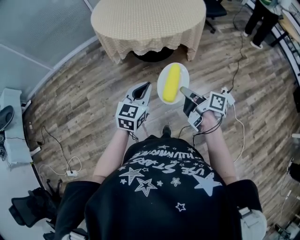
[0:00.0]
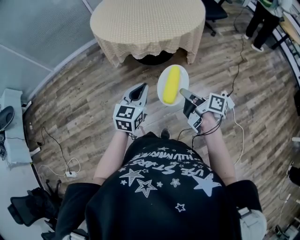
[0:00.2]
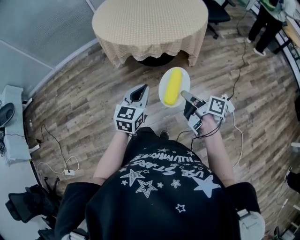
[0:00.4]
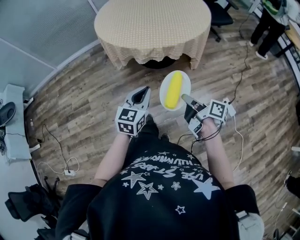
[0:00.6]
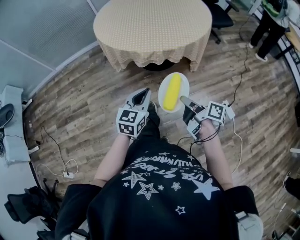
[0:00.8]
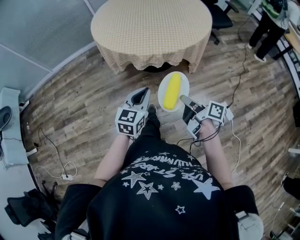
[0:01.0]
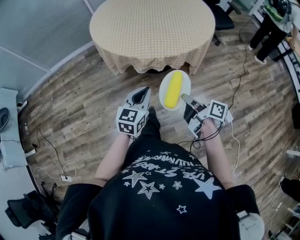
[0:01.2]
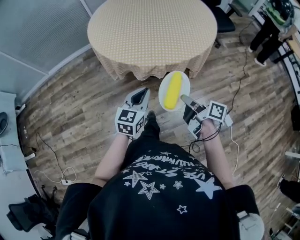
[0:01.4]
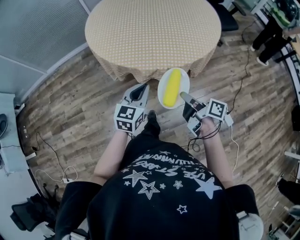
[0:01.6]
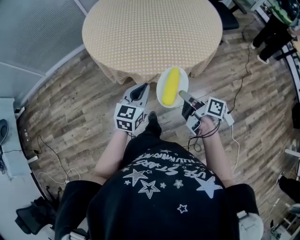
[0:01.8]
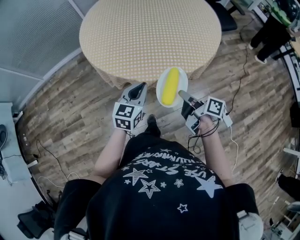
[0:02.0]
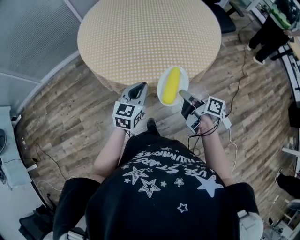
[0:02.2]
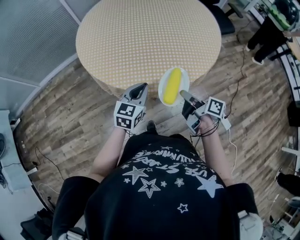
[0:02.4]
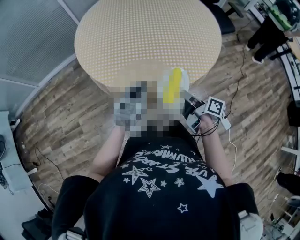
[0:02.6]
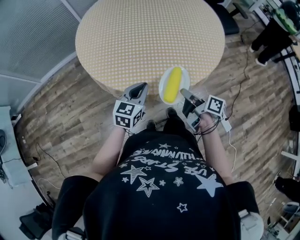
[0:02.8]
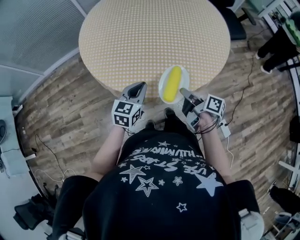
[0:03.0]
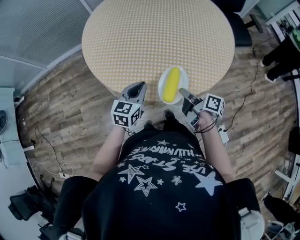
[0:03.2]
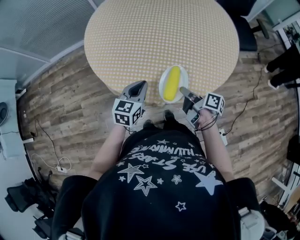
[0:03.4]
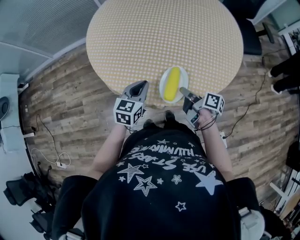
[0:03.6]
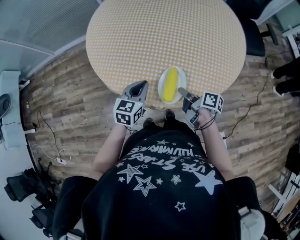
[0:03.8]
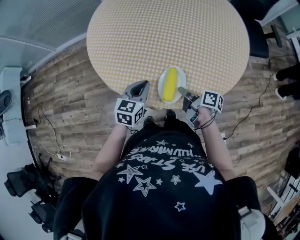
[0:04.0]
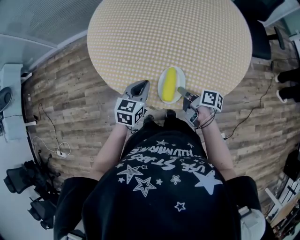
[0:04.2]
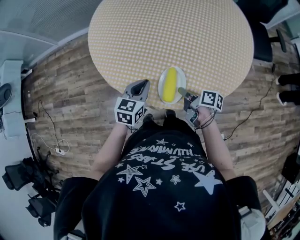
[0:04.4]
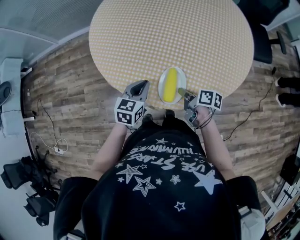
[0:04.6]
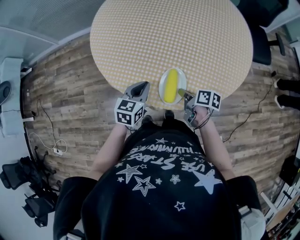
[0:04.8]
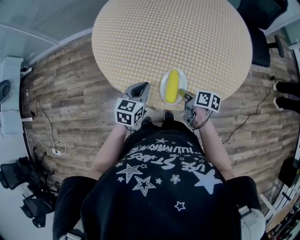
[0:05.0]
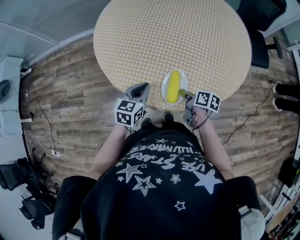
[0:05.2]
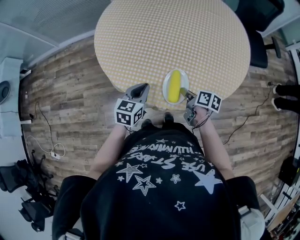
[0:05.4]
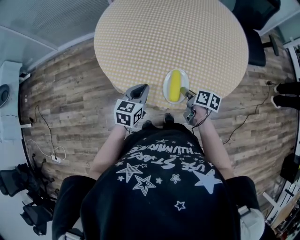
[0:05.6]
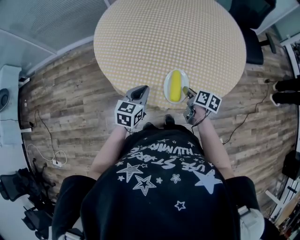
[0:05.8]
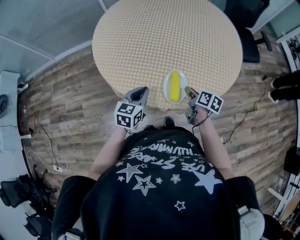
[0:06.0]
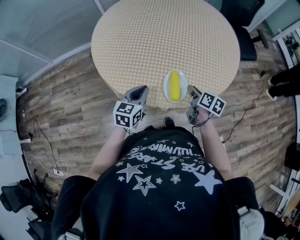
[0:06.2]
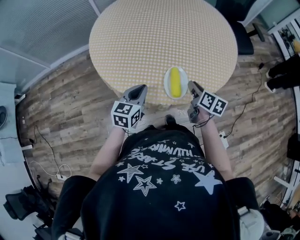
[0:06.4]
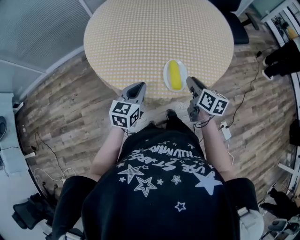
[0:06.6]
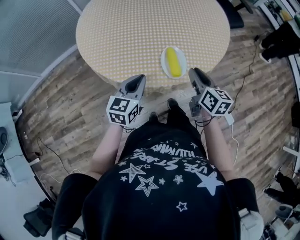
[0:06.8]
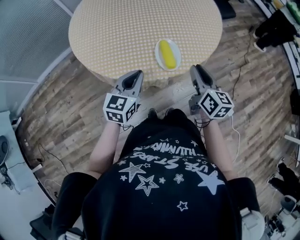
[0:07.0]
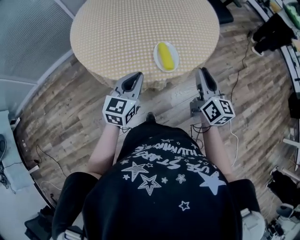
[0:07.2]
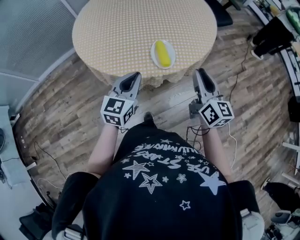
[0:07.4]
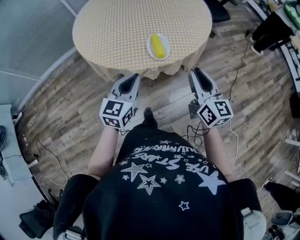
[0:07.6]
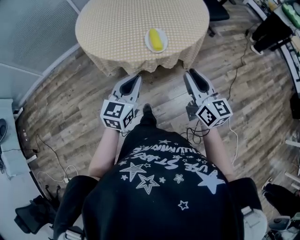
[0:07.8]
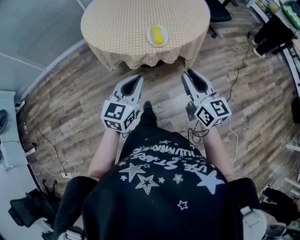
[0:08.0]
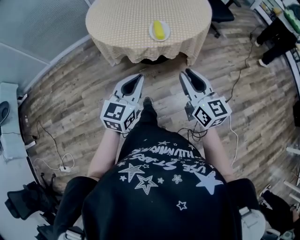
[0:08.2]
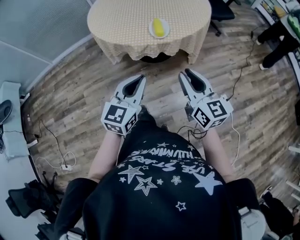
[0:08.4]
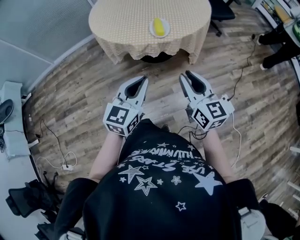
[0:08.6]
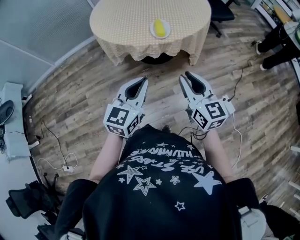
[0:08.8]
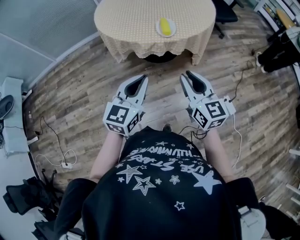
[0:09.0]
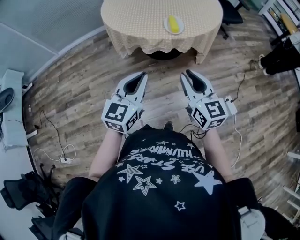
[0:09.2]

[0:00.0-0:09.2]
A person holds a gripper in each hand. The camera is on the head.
0:00.0 to 0:01.6: The grippers both shift forward by approximately 25 cm.
0:01.6 to 0:03.0: The two grippers go approximately 15 cm forward.
0:03.0 to 0:04.6: The right gripper moves forward and downward, some 10 cm, and swivels about 30 degrees. The left gripper shifts by some 5 cm.
0:04.6 to 0:06.2: The right gripper ends up roughly 5 cm from where it was, and swivels roughly 30 degrees.
0:06.2 to 0:07.6: The left gripper heads backward and upward, covering about 20 cm; the right gripper heads backward and upward, covering approximately 30 cm, and tips its fingers upward by approximately 30 degrees.
0:07.6 to 0:09.2: Both grippers move backward, roughly 20 cm.

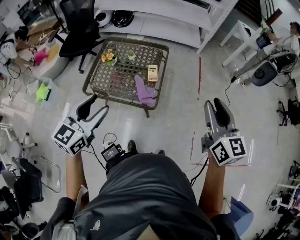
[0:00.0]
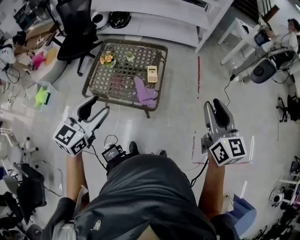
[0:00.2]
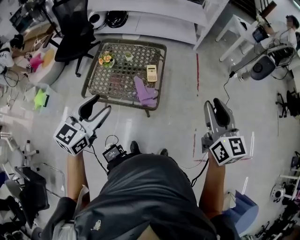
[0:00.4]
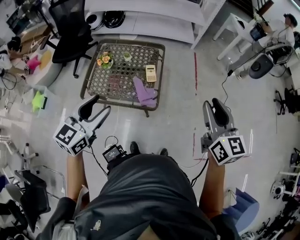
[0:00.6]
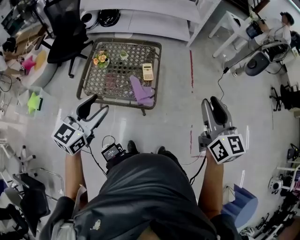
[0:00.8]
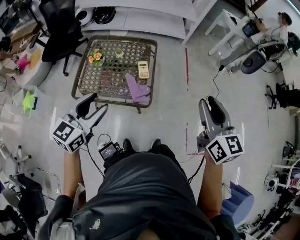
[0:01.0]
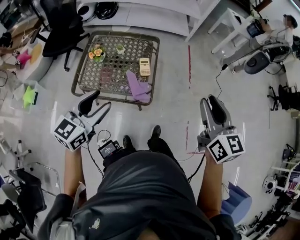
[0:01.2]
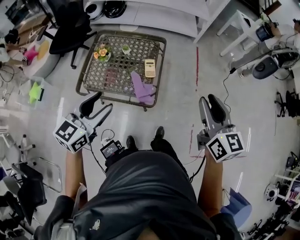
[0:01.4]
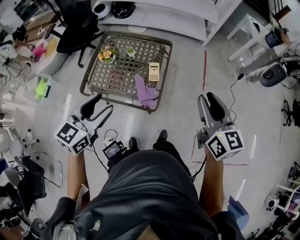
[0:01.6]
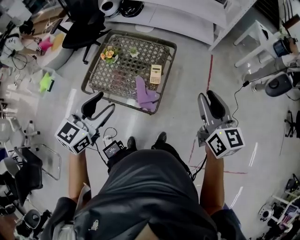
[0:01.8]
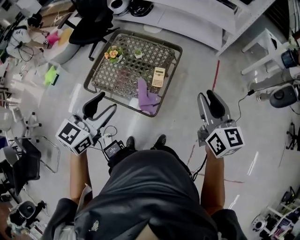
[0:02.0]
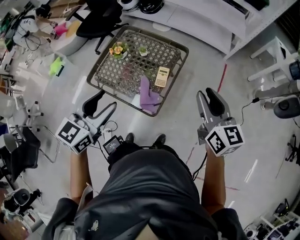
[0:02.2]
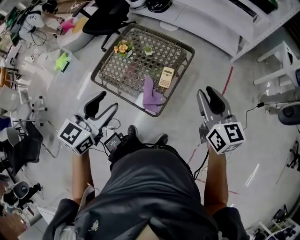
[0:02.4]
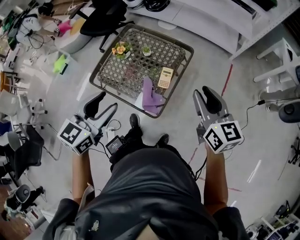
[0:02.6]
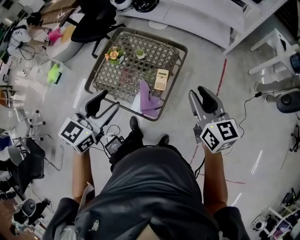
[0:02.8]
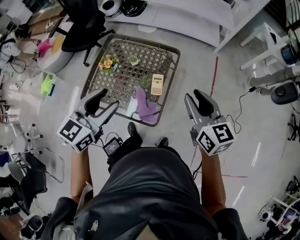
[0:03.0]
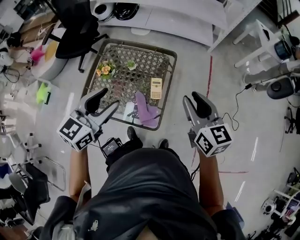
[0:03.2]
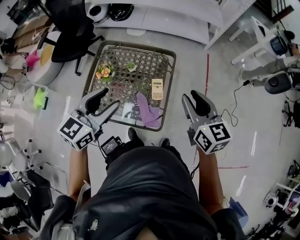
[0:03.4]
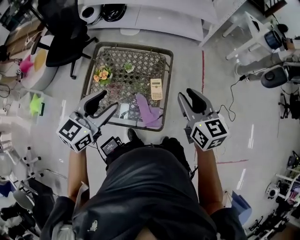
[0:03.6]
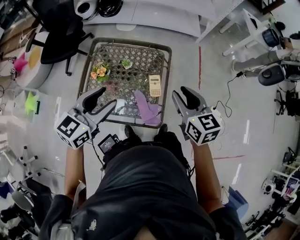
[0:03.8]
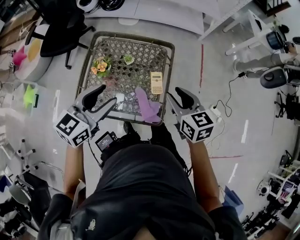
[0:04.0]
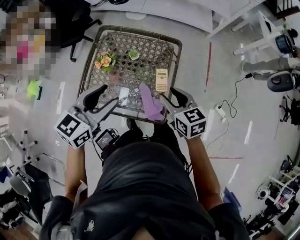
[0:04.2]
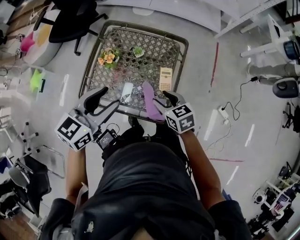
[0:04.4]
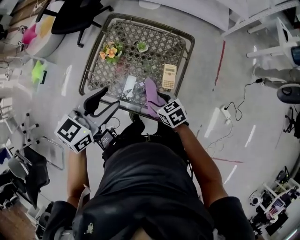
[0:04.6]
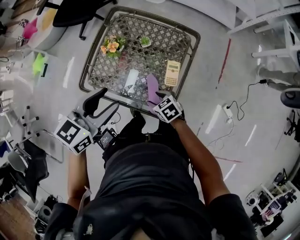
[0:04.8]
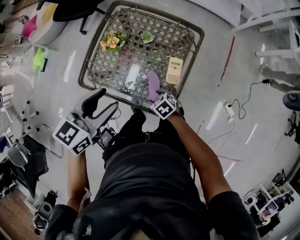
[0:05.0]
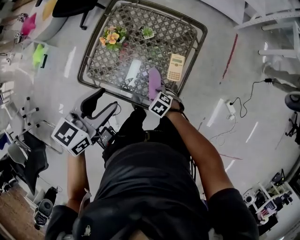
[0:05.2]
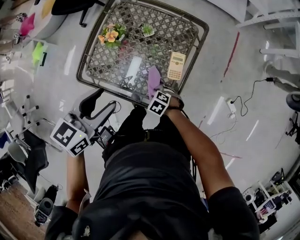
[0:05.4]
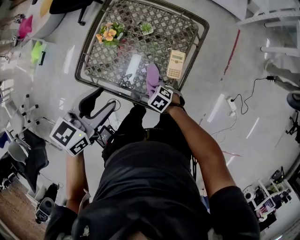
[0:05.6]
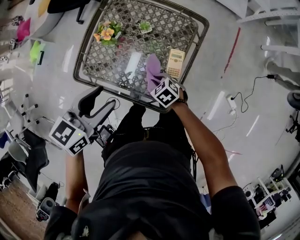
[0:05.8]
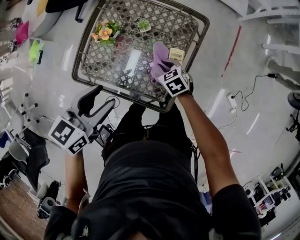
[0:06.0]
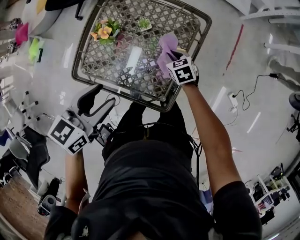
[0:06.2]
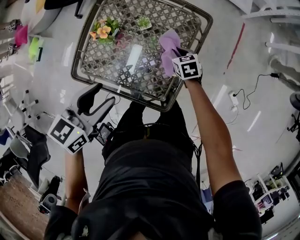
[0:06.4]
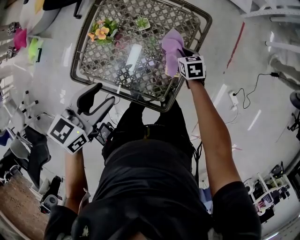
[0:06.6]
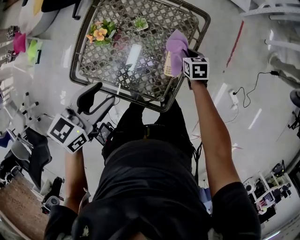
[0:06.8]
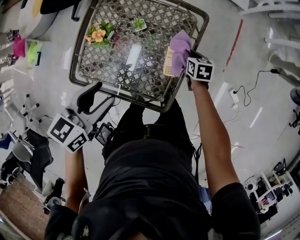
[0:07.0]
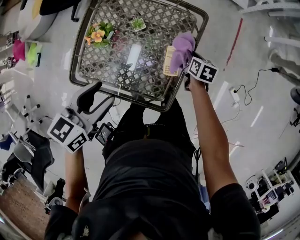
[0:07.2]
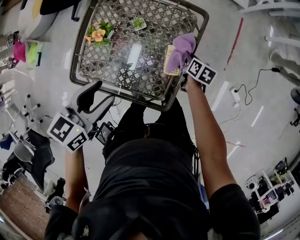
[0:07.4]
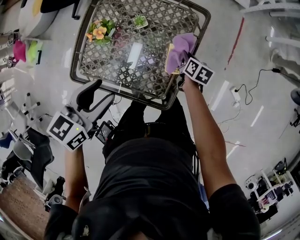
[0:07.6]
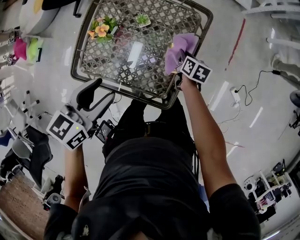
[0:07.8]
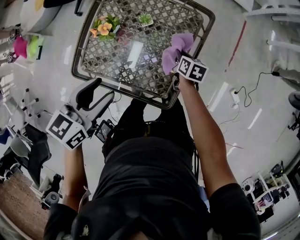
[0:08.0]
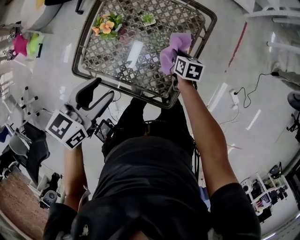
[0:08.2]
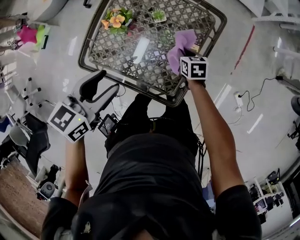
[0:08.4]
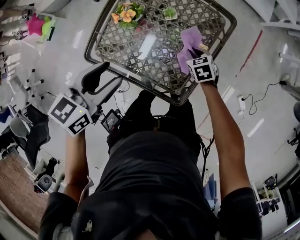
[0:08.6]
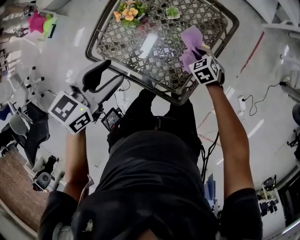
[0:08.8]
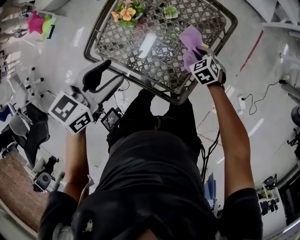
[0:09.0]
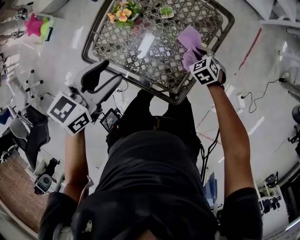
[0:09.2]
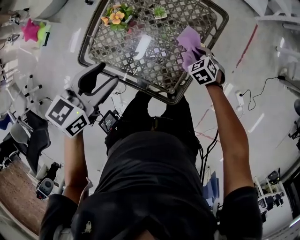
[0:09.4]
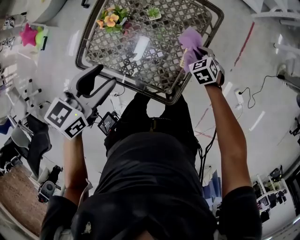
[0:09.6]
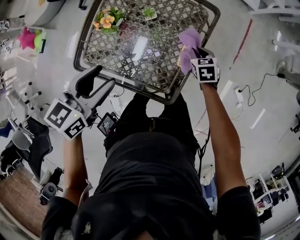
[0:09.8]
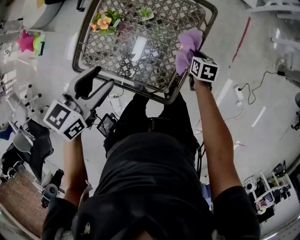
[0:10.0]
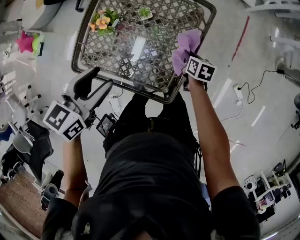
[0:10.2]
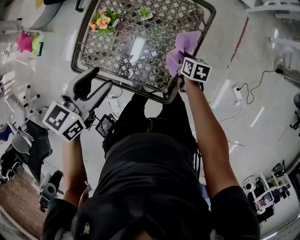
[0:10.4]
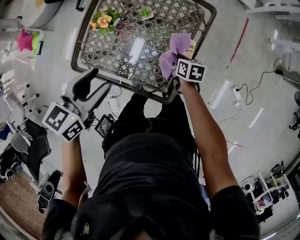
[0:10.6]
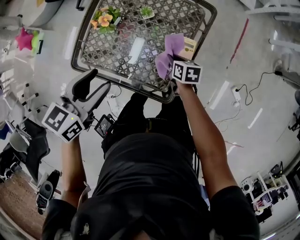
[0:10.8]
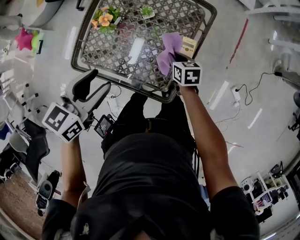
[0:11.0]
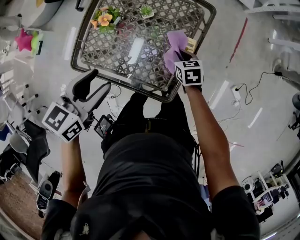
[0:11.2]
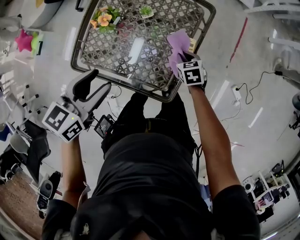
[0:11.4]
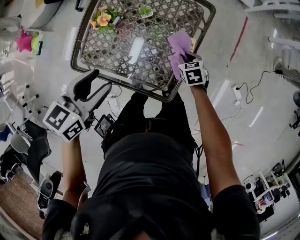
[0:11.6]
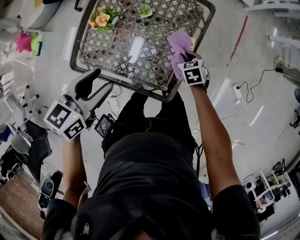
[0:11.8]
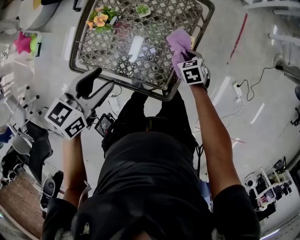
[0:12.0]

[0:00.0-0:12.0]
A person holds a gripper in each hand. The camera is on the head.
0:00.0 to 0:01.6: The grippers both shift forward by about 10 cm.
0:01.6 to 0:03.0: The right gripper heads forward and downward, covering approximately 15 cm; the left gripper travels forward by some 15 cm.
0:03.0 to 0:04.4: The right gripper goes some 30 cm downward and to the left, rotates approximately 30 degrees, and opens its fingers, while the left gripper is displaced to the left, downward and forward by about 10 cm.
0:04.4 to 0:06.0: The right gripper moves downward, some 20 cm, swivels roughly 20 degrees, and closes its fingers; the left gripper is displaced downward by some 10 cm.
0:06.0 to 0:07.6: The right gripper heads to the right and forward, covering approximately 15 cm, and twists roughly 50 degrees clockwise, seen from behind.
0:07.6 to 0:09.0: The right gripper travels to the left by some 10 cm, and rolls counterclockwise, seen from behind, by roughly 70 degrees.
0:09.0 to 0:10.4: The right gripper twists about 60 degrees clockwise, seen from behind.
0:10.4 to 0:12.0: The right gripper changes its angle by approximately 40 degrees.

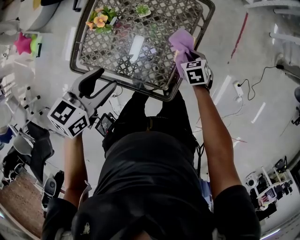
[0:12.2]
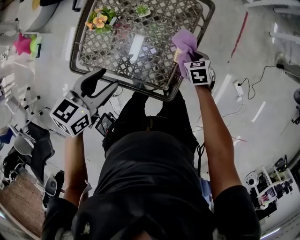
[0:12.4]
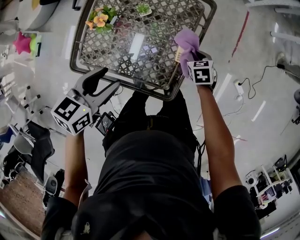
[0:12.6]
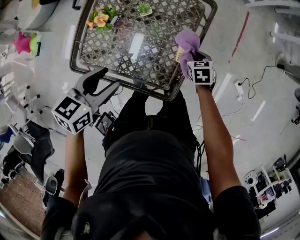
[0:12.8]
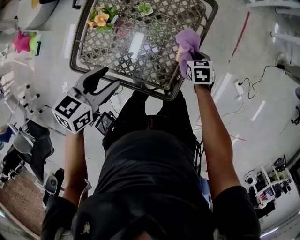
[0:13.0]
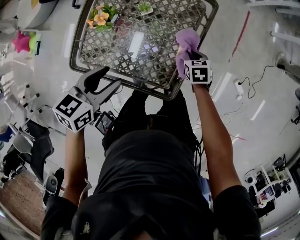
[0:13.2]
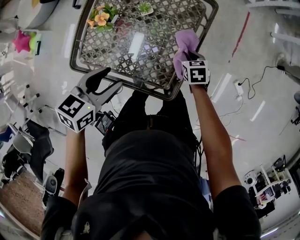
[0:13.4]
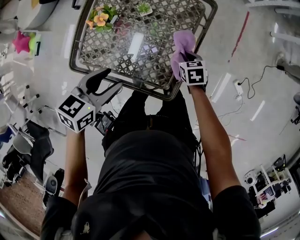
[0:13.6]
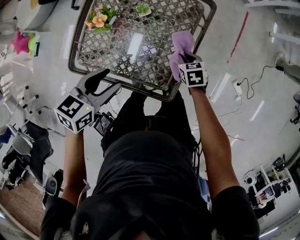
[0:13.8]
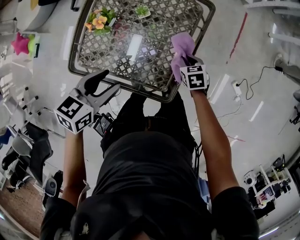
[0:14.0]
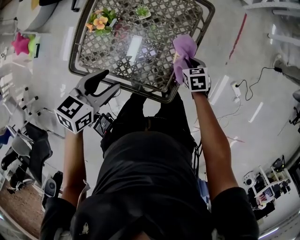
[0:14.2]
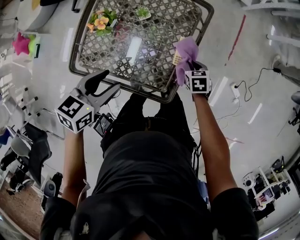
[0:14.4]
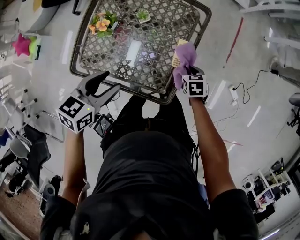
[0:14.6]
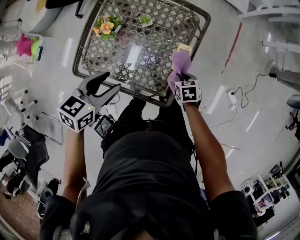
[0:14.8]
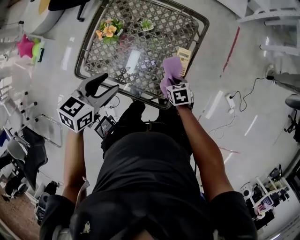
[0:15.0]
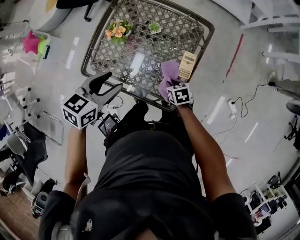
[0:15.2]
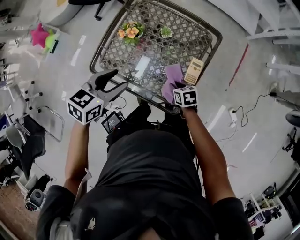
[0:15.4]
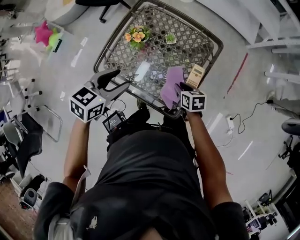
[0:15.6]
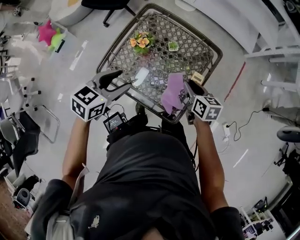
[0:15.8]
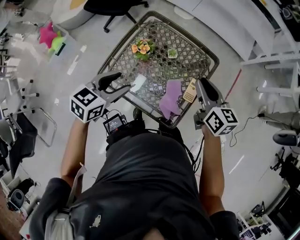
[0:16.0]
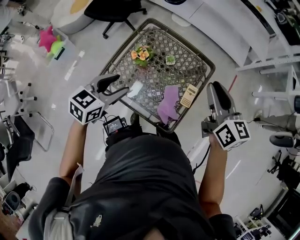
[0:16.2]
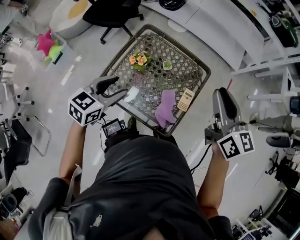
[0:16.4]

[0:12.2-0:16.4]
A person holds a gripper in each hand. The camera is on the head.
0:12.2 to 0:13.6: There are only small adjustments of the grippers.
0:13.6 to 0:15.0: The right gripper heads backward, covering about 10 cm.
0:15.0 to 0:16.4: The left gripper goes about 15 cm upward and to the left, while the right gripper travels upward by roughly 50 cm, and points its fingers approximately 60 degrees further upward.
